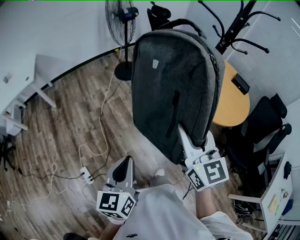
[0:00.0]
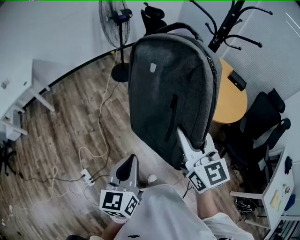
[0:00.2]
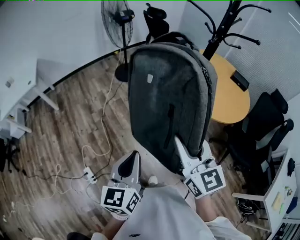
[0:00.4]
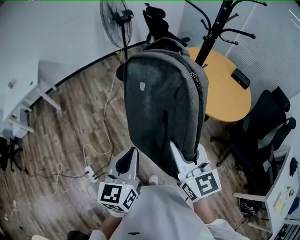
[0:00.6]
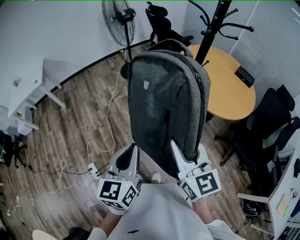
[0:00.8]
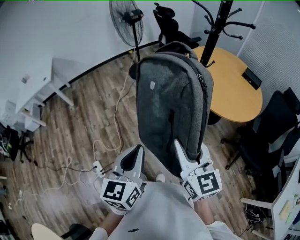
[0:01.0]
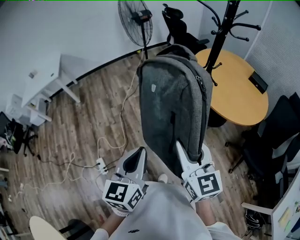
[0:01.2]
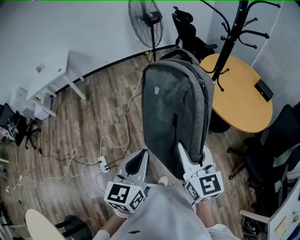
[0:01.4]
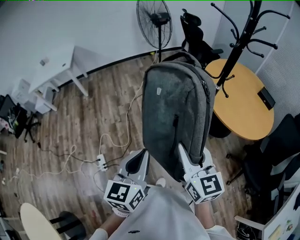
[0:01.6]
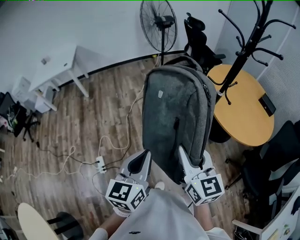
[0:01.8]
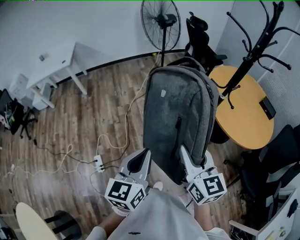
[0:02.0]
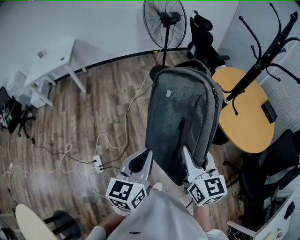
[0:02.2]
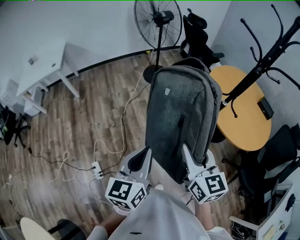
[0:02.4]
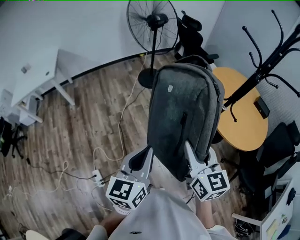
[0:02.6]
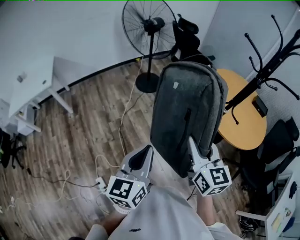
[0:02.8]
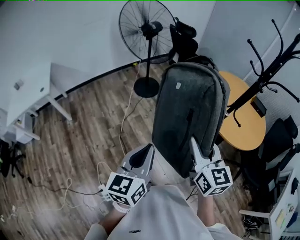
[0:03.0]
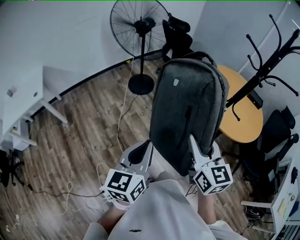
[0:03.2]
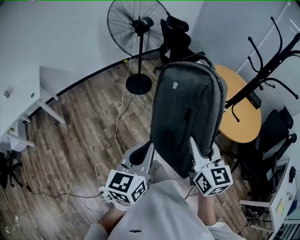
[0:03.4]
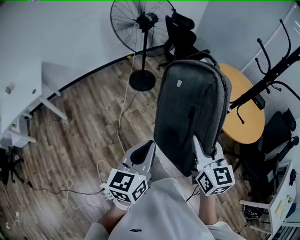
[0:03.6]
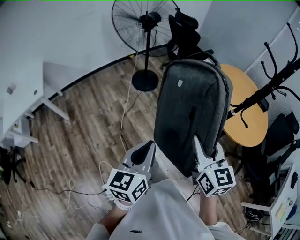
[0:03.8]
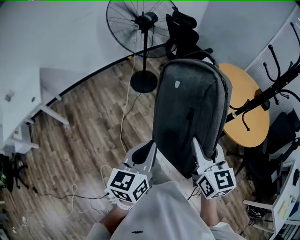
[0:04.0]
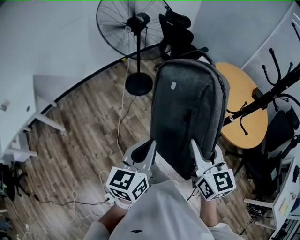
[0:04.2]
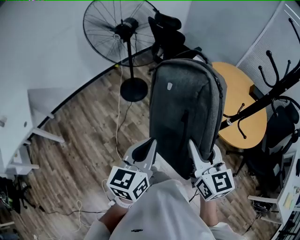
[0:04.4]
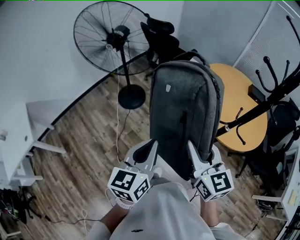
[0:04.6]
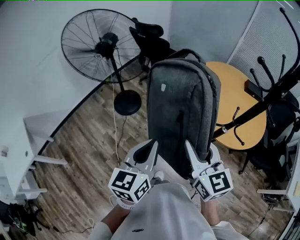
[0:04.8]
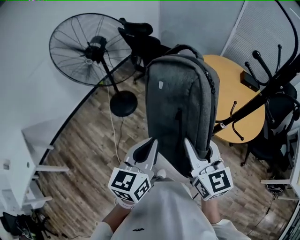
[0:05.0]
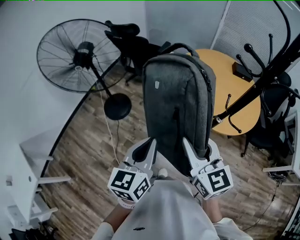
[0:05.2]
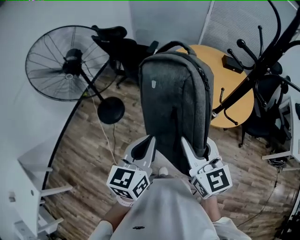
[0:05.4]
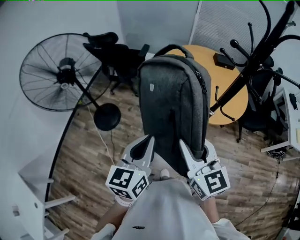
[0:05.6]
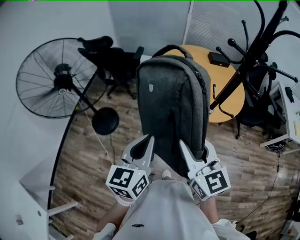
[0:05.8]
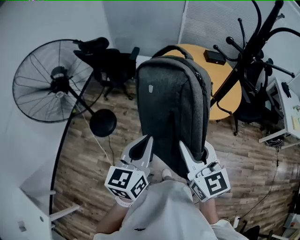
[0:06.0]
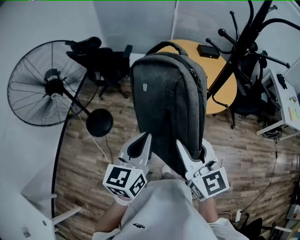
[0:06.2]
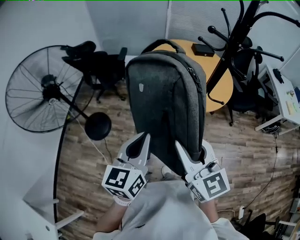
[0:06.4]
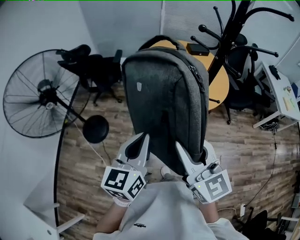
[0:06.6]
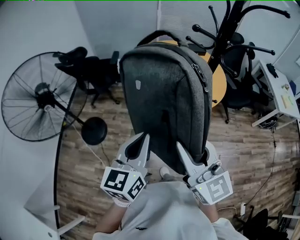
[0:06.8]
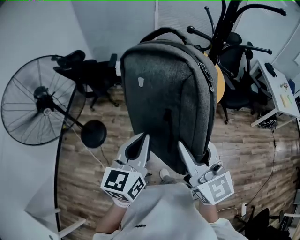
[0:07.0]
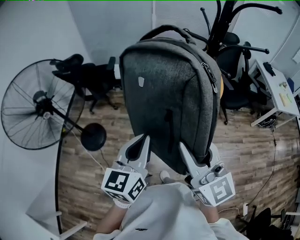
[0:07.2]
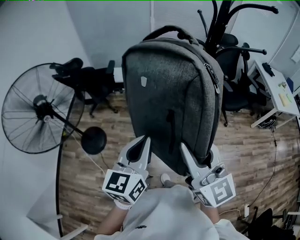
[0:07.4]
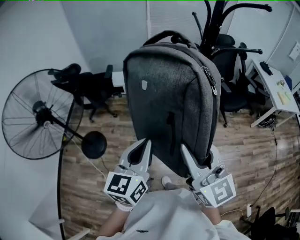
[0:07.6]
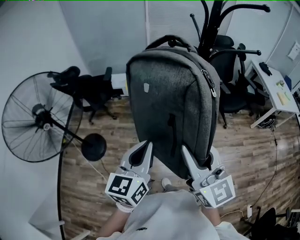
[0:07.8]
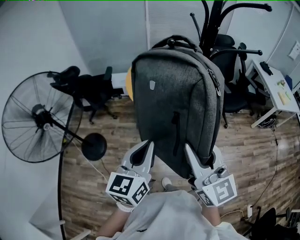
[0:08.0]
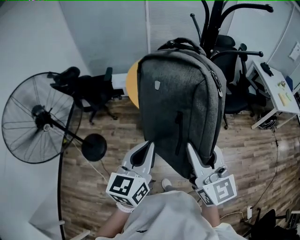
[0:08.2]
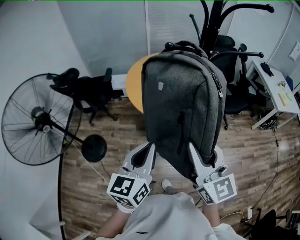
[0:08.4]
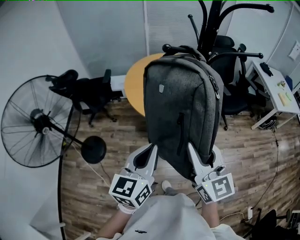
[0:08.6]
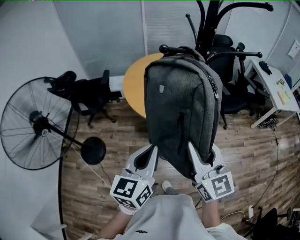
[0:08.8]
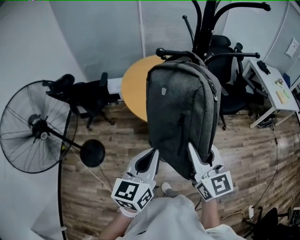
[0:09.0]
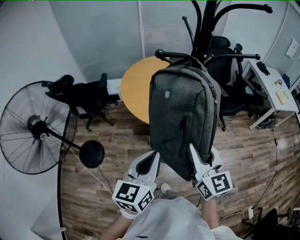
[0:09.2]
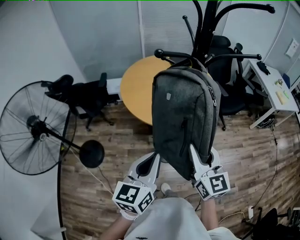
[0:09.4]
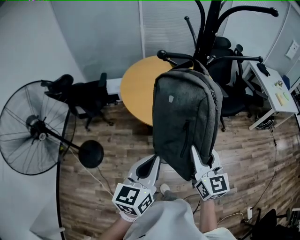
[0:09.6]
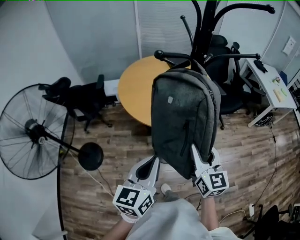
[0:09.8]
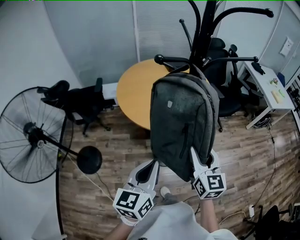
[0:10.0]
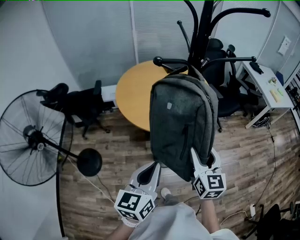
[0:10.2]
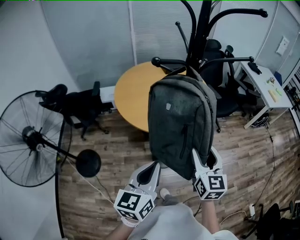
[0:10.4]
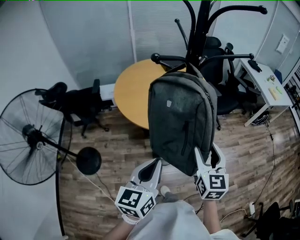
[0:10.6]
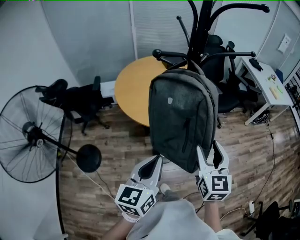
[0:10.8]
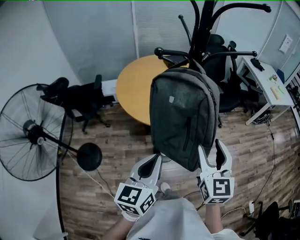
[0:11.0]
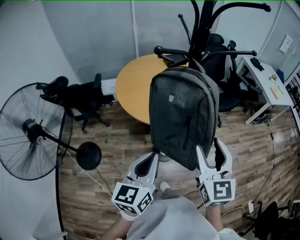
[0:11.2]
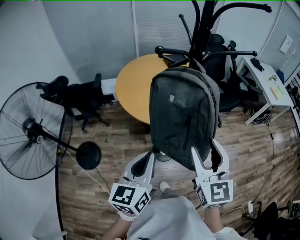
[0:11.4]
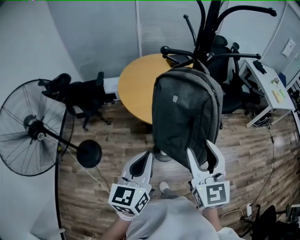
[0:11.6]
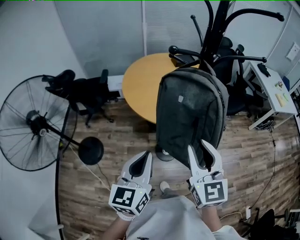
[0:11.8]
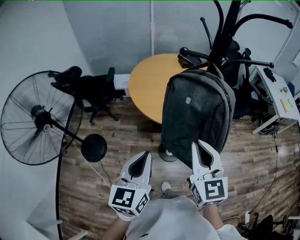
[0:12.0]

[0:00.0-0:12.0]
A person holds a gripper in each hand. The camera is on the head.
0:00.0 to 0:01.6: The left gripper goes about 10 cm to the right and backward. Meanwhile the right gripper goes about 10 cm backward and downward.
0:01.6 to 0:03.0: Both grippers move forward and to the left, roughly 25 cm.
0:03.0 to 0:04.4: The two grippers go approximately 20 cm forward.
0:04.4 to 0:06.0: The left gripper changes place by roughly 15 cm, and swivels roughly 30 degrees, while the right gripper ends up roughly 10 cm from where it was, and changes its angle by approximately 30 degrees.
0:06.0 to 0:07.6: The right gripper is displaced to the right and upward by some 10 cm. The left gripper moves to the right, roughly 10 cm.
0:07.6 to 0:09.0: The right gripper is displaced to the right, forward and downward by about 10 cm. Meanwhile the left gripper moves to the right, roughly 5 cm.
0:09.0 to 0:10.4: The right gripper goes approximately 10 cm downward and to the right, changes its angle by roughly 20 degrees, and opens up.
0:10.4 to 0:12.0: The left gripper is displaced to the left by about 5 cm, while the right gripper shifts approximately 10 cm to the left and upward, and closes its fingers.

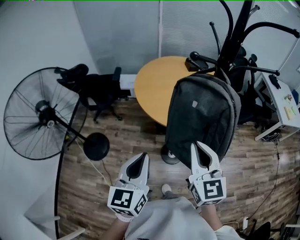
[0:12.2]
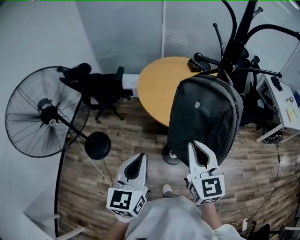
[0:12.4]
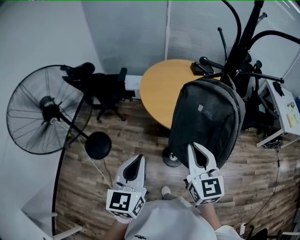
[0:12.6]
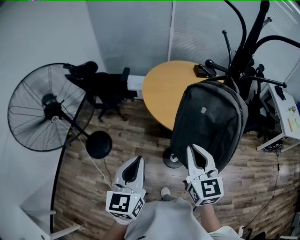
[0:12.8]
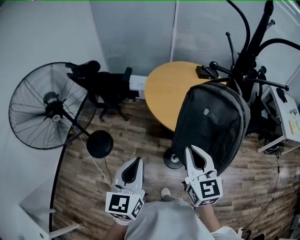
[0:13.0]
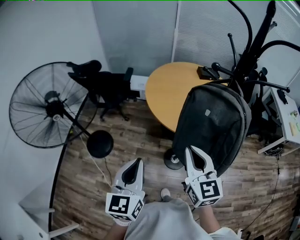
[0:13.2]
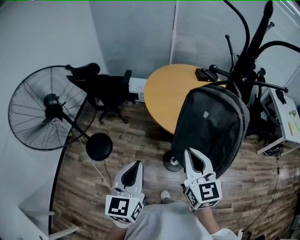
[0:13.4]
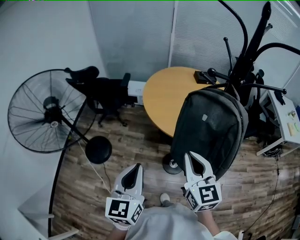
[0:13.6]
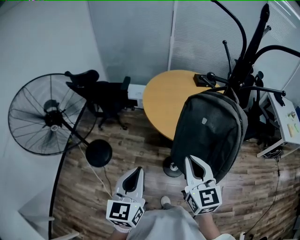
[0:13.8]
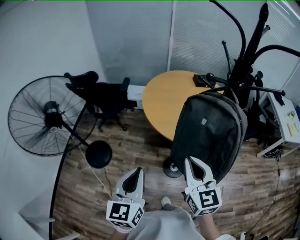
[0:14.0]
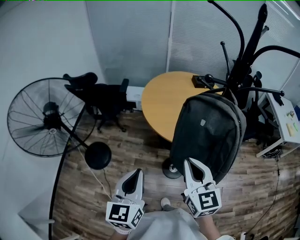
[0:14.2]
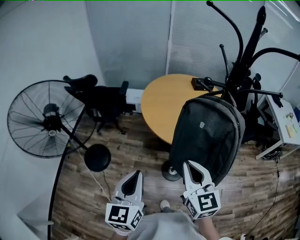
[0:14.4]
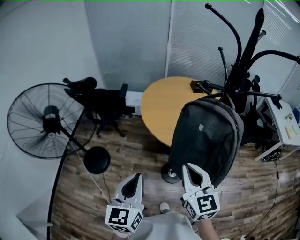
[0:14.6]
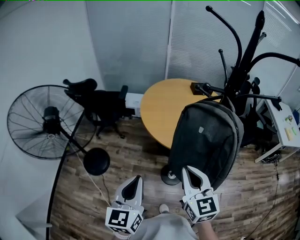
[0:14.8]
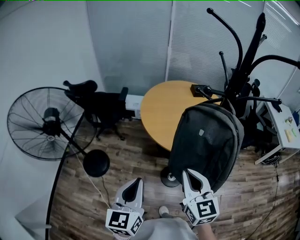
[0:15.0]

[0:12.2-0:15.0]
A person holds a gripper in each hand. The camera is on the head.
0:12.2 to 0:13.6: The right gripper moves some 5 cm.
0:13.6 to 0:15.0: Both grippers stay about where they are.

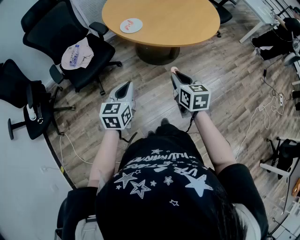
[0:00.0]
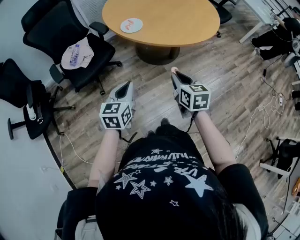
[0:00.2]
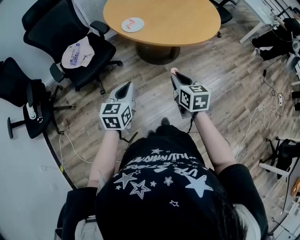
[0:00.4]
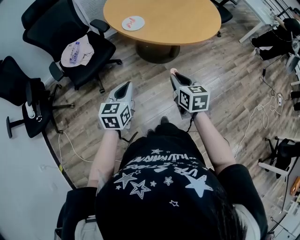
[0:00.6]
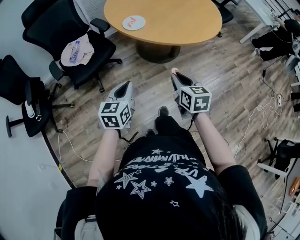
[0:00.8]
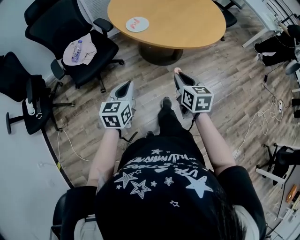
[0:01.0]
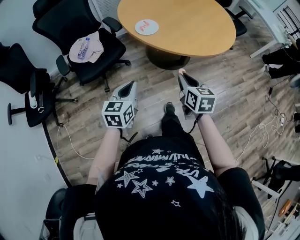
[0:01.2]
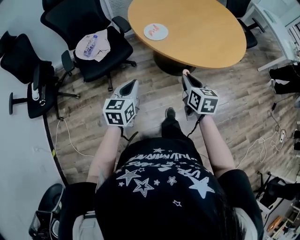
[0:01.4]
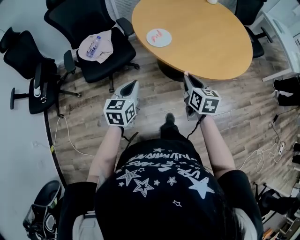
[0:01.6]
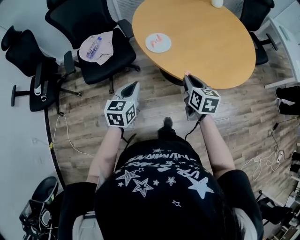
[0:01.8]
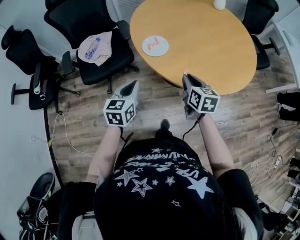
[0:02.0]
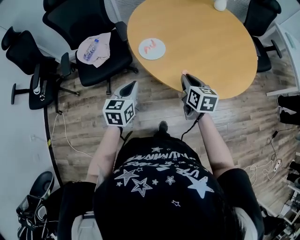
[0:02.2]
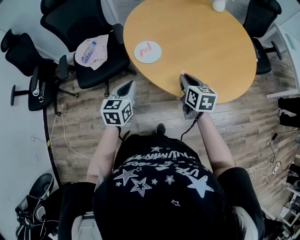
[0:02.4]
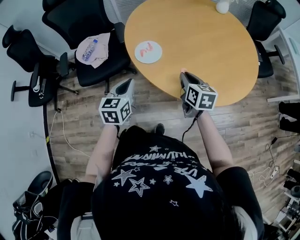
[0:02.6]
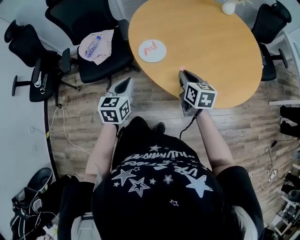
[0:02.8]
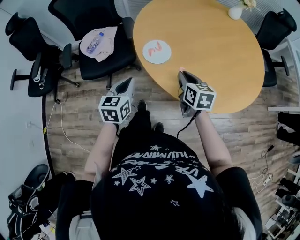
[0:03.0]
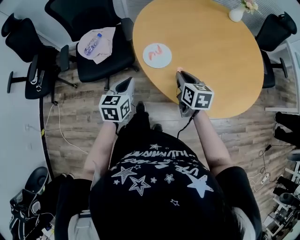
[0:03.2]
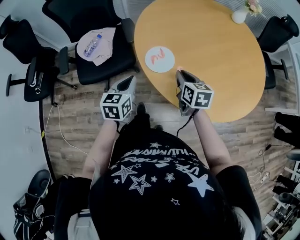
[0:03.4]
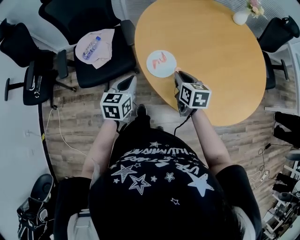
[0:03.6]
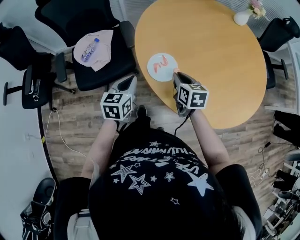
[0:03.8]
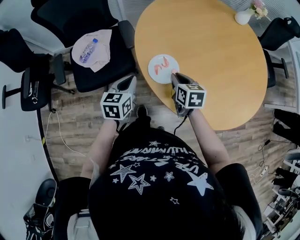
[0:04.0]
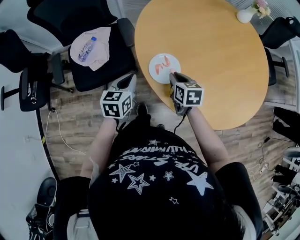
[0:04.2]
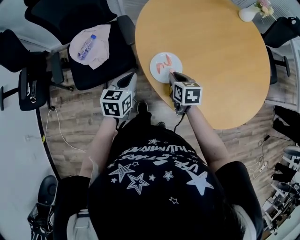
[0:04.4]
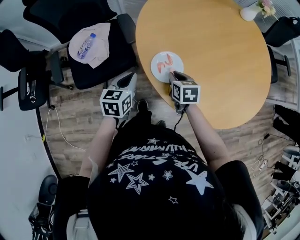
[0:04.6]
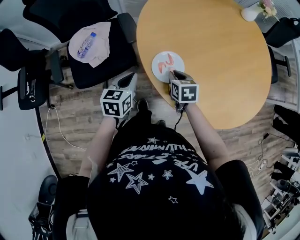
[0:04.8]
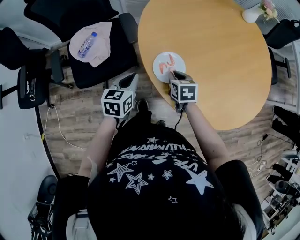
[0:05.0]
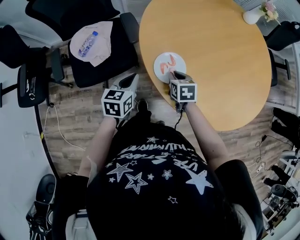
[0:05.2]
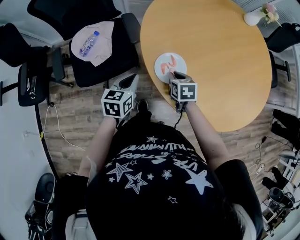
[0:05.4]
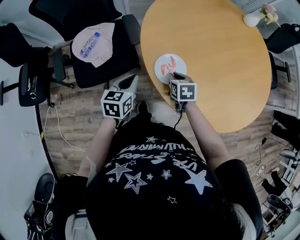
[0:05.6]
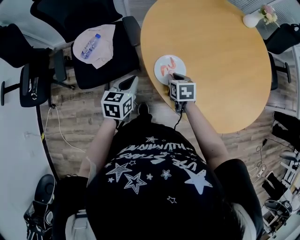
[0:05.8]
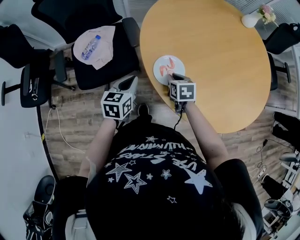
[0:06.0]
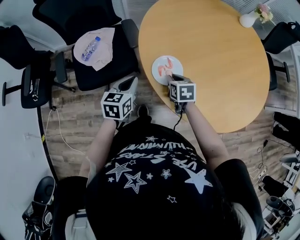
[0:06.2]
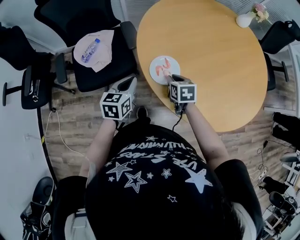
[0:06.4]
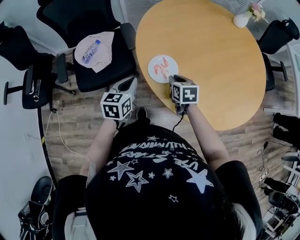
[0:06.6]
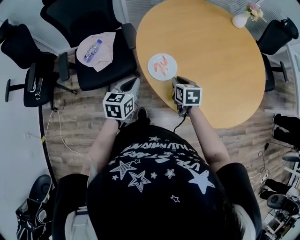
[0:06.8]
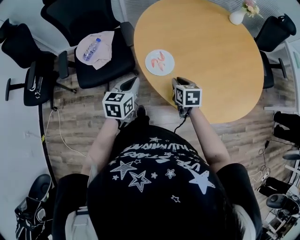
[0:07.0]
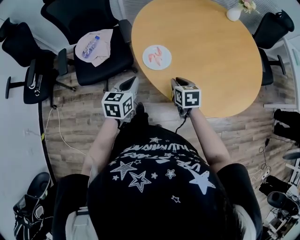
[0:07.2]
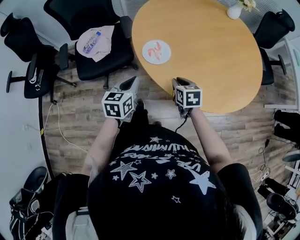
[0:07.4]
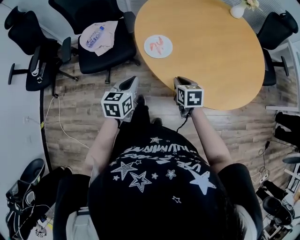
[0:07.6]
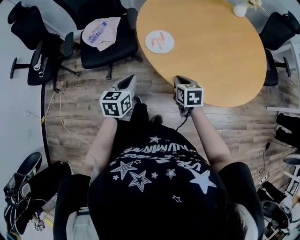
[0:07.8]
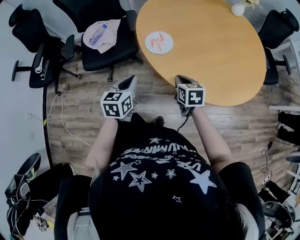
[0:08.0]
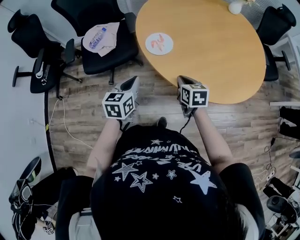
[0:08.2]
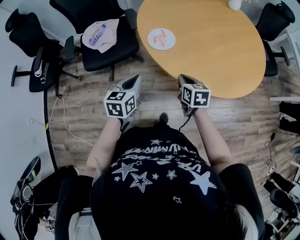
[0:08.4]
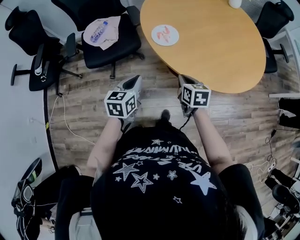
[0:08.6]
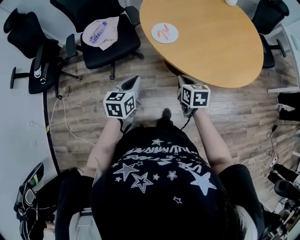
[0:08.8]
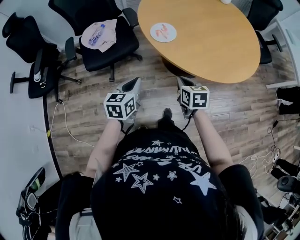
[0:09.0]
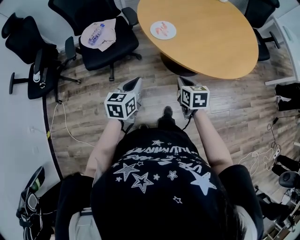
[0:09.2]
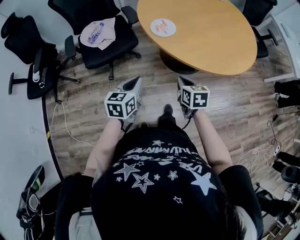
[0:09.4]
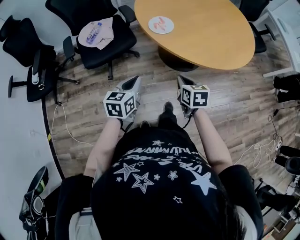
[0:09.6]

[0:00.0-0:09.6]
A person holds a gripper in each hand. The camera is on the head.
0:00.0 to 0:01.6: Both grippers move forward, roughly 15 cm.
0:01.6 to 0:03.2: The grippers both shift forward by approximately 15 cm.
0:03.2 to 0:04.8: The right gripper heads downward, forward and to the left, covering approximately 15 cm, while the left gripper moves forward and downward, some 15 cm.
0:04.8 to 0:06.4: The grippers stay close to where they were, moving slightly.
0:06.4 to 0:08.0: The two grippers go roughly 15 cm backward.
0:08.0 to 0:09.6: The right gripper is displaced backward by some 15 cm. The left gripper is displaced backward and to the left by approximately 15 cm.
